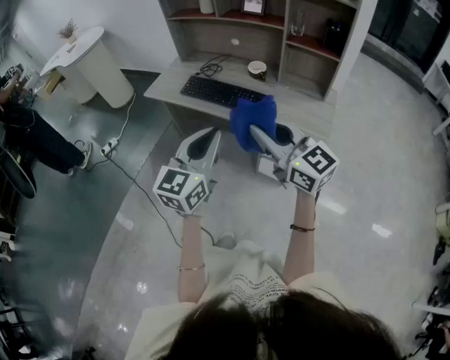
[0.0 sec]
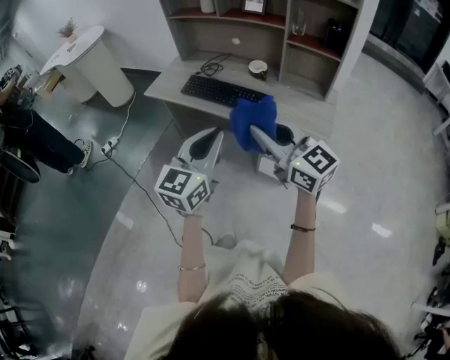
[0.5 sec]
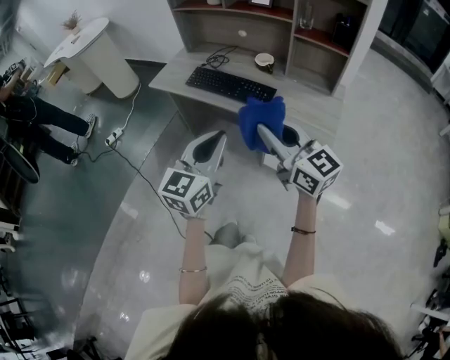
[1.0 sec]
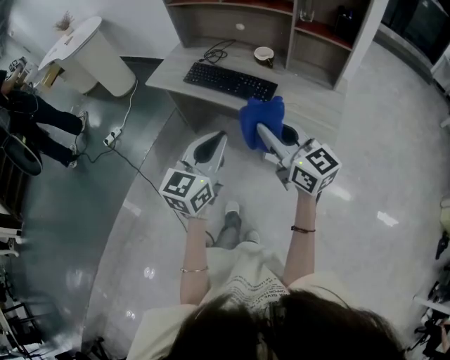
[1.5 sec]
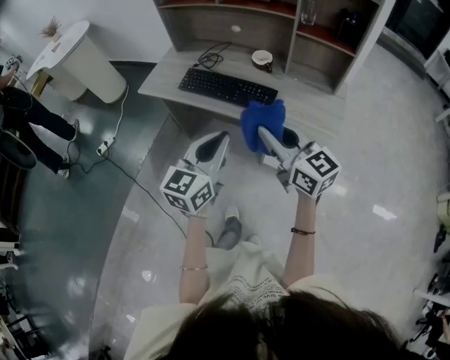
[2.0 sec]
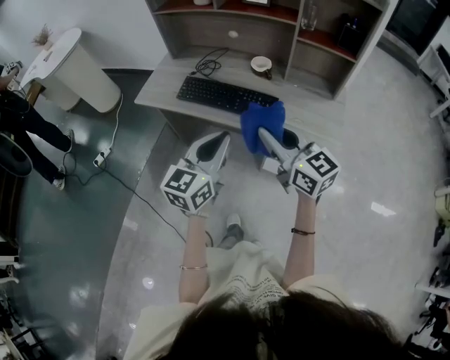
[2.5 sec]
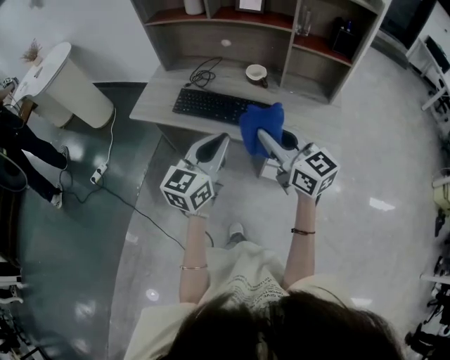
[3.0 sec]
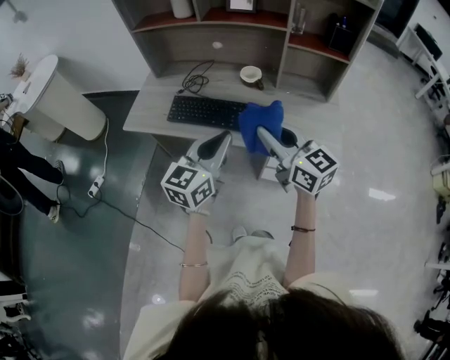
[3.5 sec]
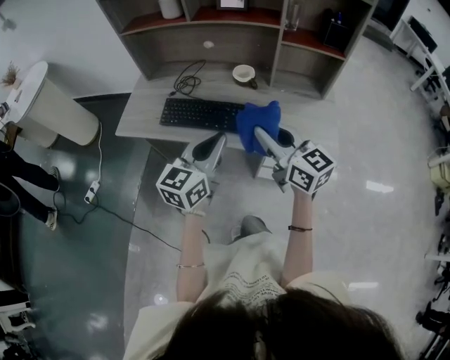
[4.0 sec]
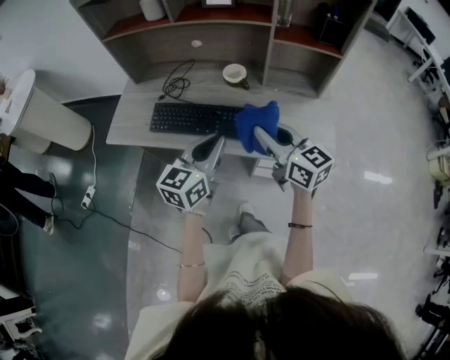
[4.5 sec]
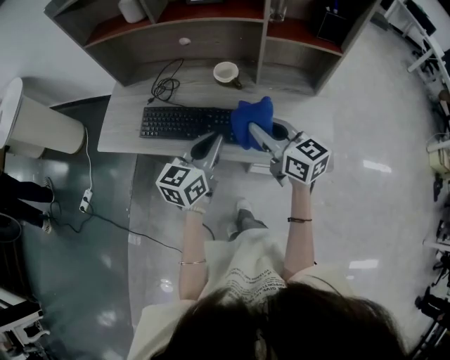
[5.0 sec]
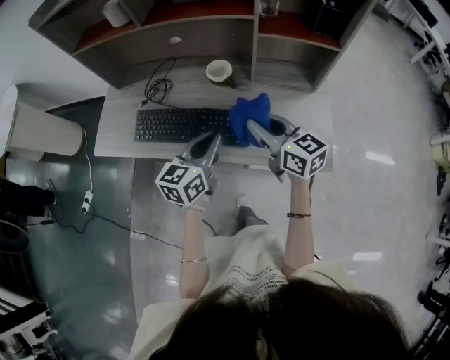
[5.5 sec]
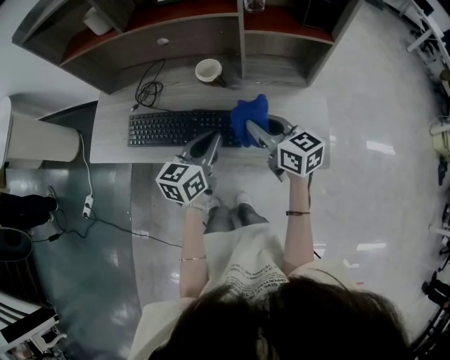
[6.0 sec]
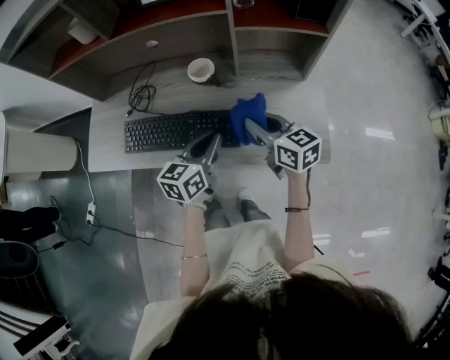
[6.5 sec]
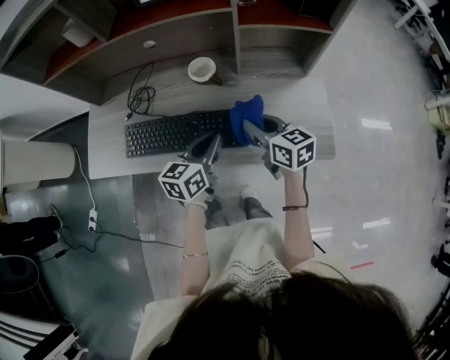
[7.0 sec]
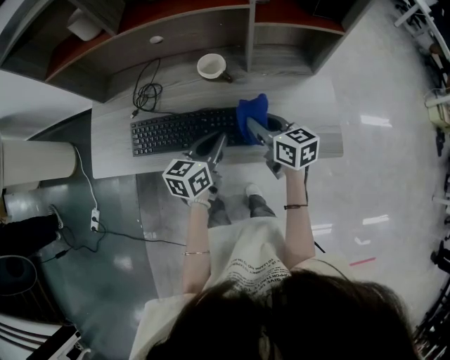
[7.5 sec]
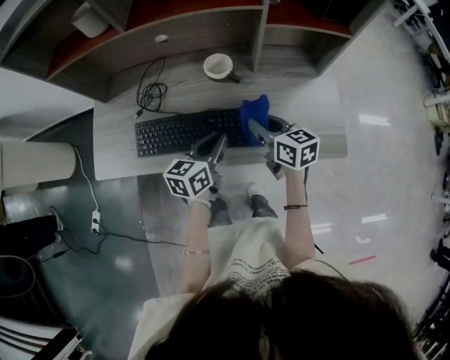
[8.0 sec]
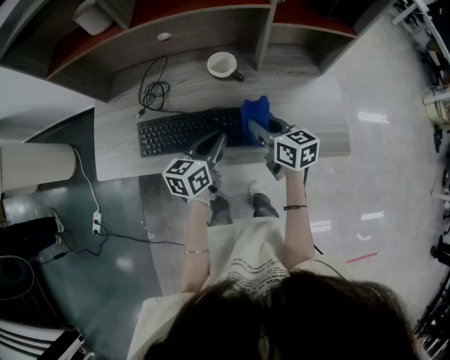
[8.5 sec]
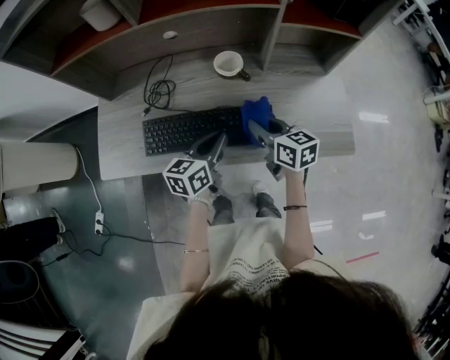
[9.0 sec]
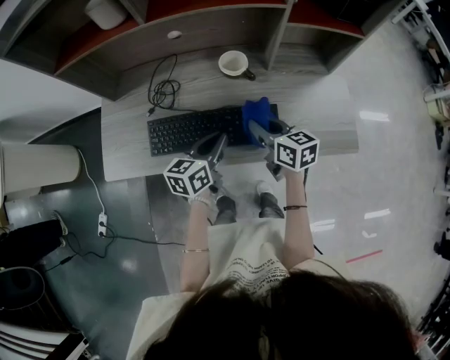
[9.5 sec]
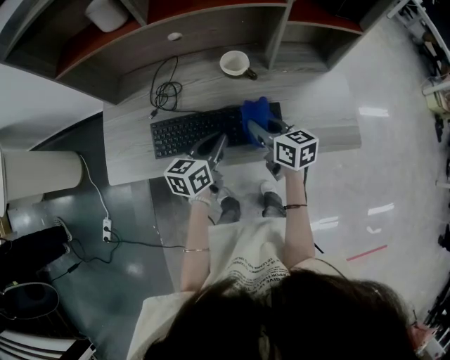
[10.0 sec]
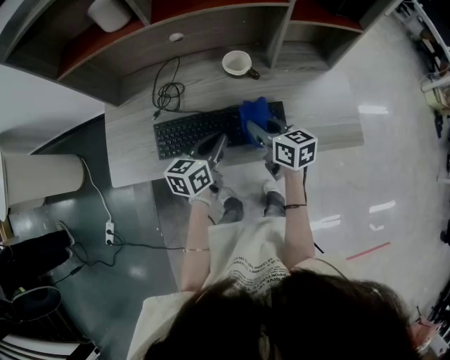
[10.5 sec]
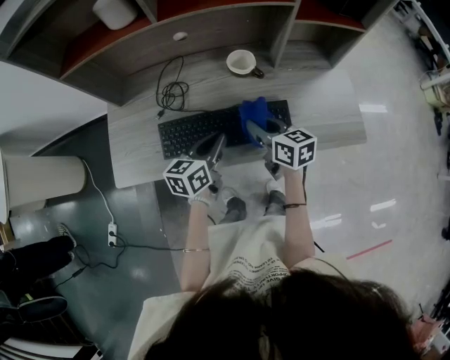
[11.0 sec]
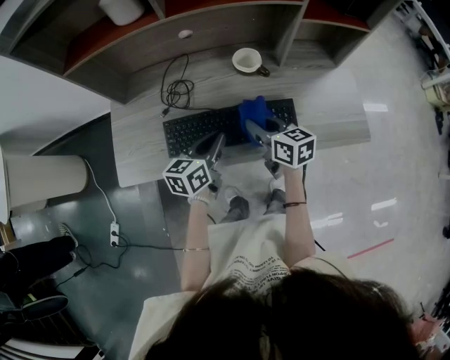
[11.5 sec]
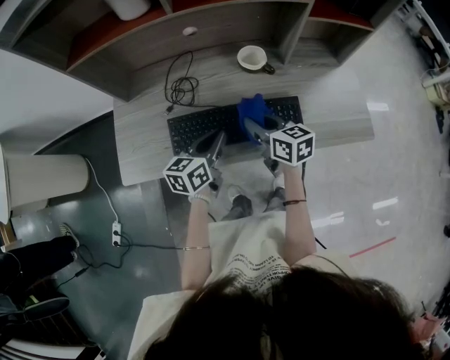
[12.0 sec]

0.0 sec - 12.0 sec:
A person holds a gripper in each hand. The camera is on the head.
0.0 sec - 2.0 sec: The two grippers go roughly 10 cm forward and downward.
2.0 sec - 4.0 sec: Both grippers travel together forward, approximately 15 cm.
4.0 sec - 6.0 sec: The right gripper goes some 20 cm forward, downward and to the right; the left gripper goes some 20 cm forward, to the right and downward.
6.0 sec - 8.0 sec: The left gripper shifts some 10 cm to the left and downward. The right gripper goes approximately 10 cm downward and to the left.
8.0 sec - 10.0 sec: The grippers both shift to the left by about 5 cm.
10.0 sec - 12.0 sec: Both grippers travel together to the left, roughly 10 cm.

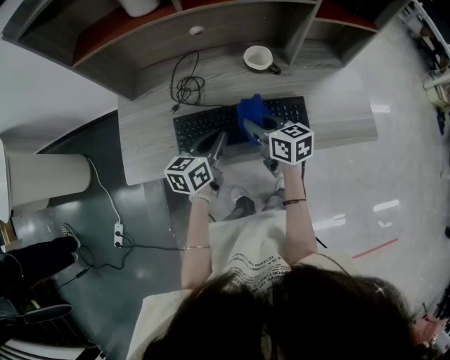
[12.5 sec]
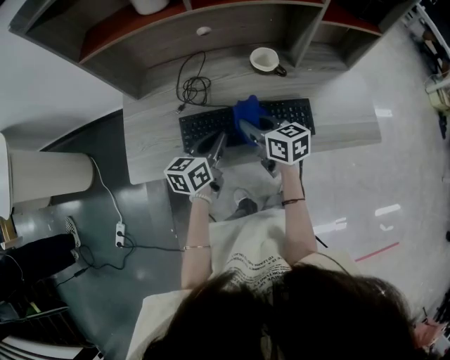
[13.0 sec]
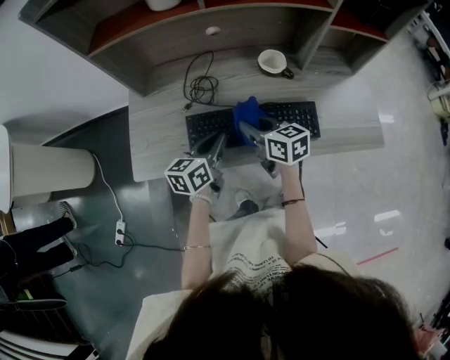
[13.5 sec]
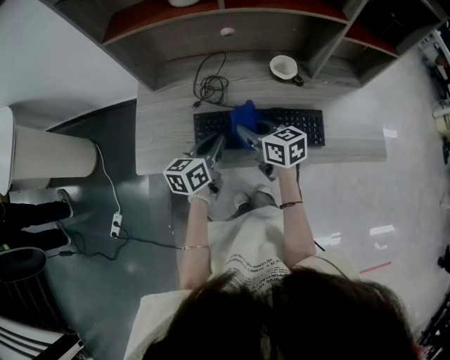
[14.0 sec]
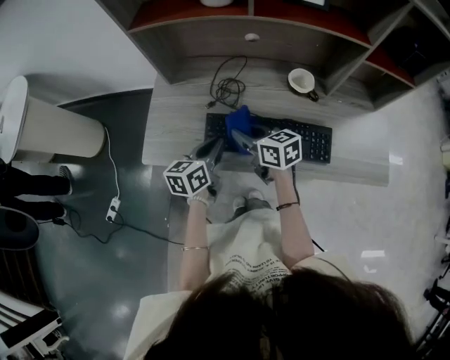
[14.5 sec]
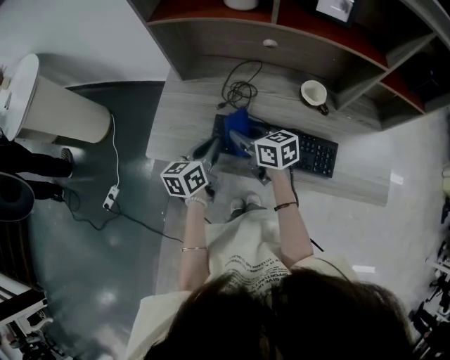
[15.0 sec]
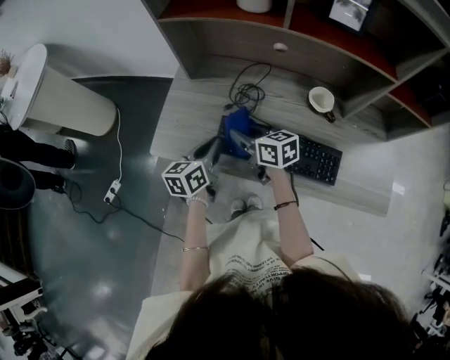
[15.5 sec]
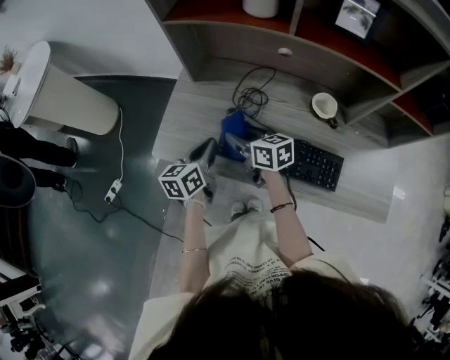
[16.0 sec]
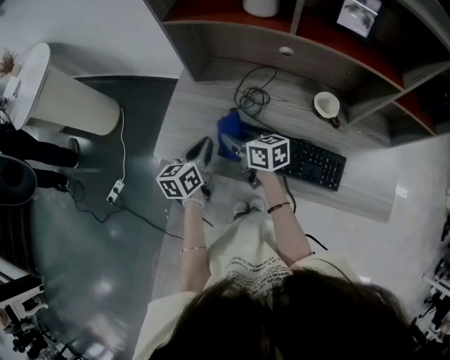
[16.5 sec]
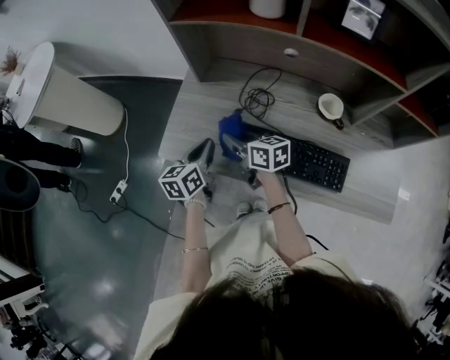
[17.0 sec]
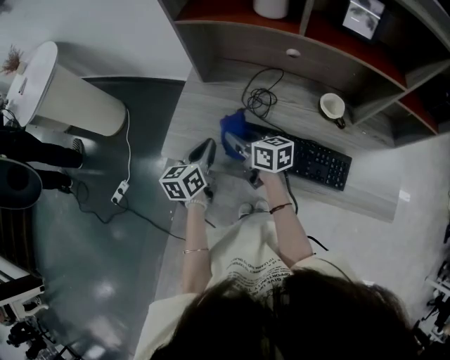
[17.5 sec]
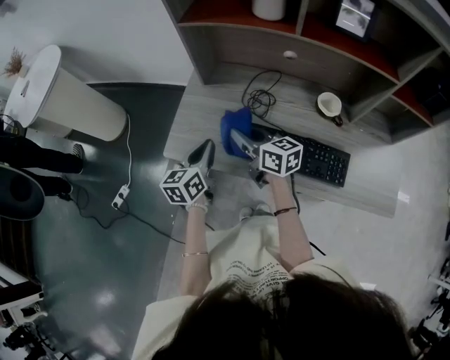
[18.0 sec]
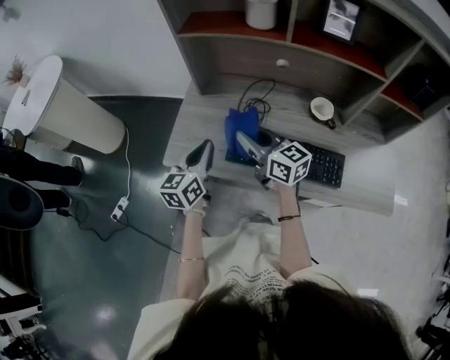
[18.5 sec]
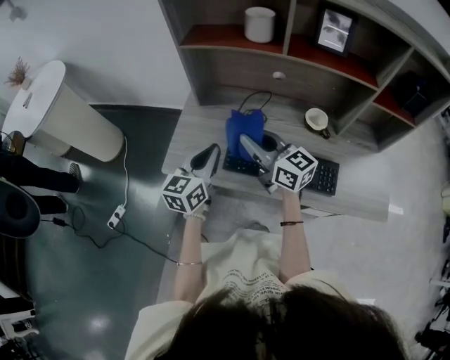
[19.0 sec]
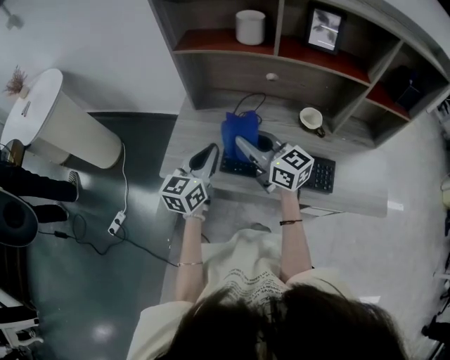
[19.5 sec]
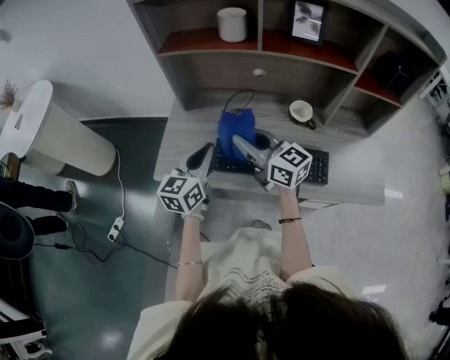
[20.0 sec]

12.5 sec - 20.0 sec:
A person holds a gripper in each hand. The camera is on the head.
12.5 sec - 14.5 sec: Both grippers travel together to the left, some 10 cm.
14.5 sec - 16.5 sec: Both grippers travel together to the left, about 10 cm.
16.5 sec - 18.0 sec: The right gripper is displaced upward by roughly 5 cm.
18.0 sec - 20.0 sec: Both grippers travel together upward and to the right, about 10 cm. The right gripper swivels some 20 degrees; the left gripper rotates roughly 20 degrees.

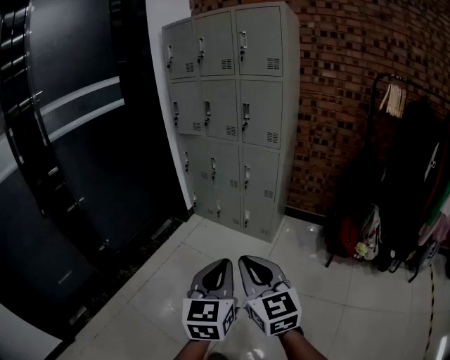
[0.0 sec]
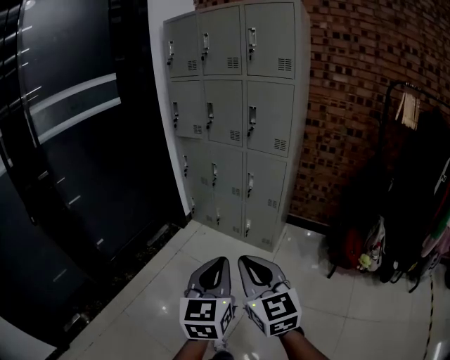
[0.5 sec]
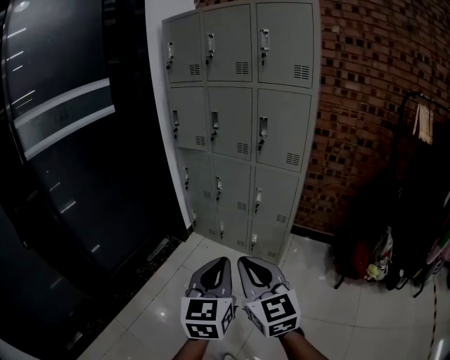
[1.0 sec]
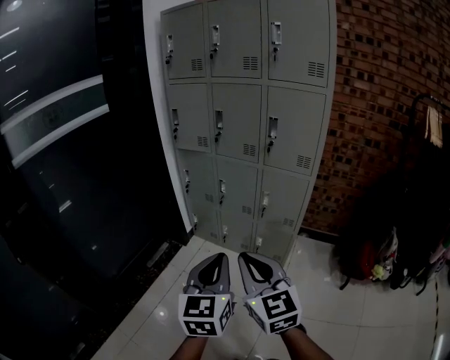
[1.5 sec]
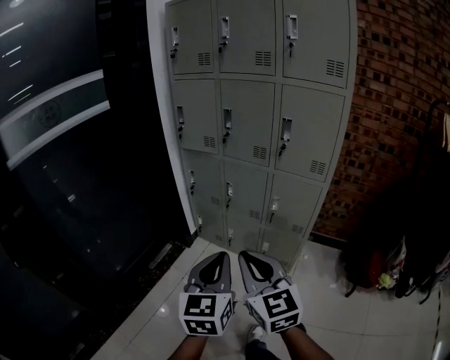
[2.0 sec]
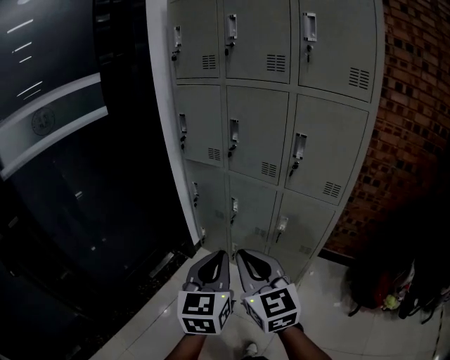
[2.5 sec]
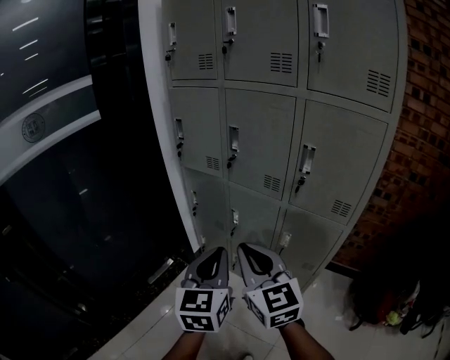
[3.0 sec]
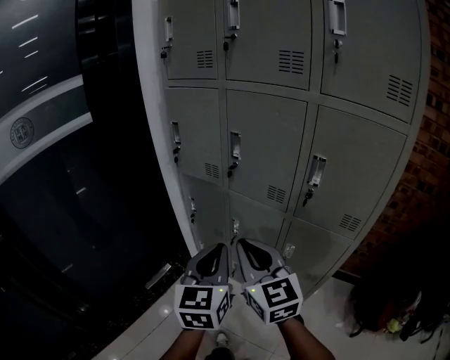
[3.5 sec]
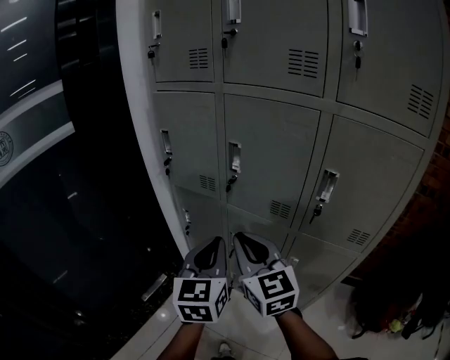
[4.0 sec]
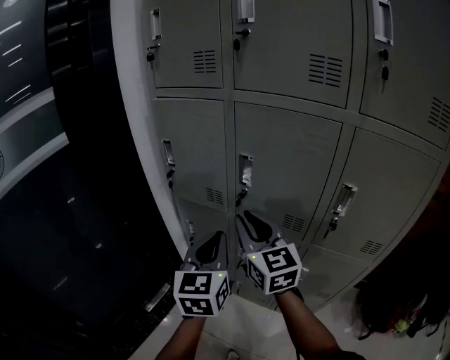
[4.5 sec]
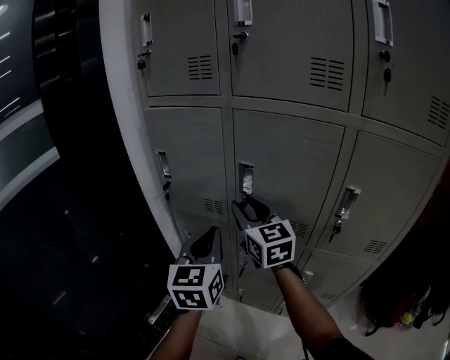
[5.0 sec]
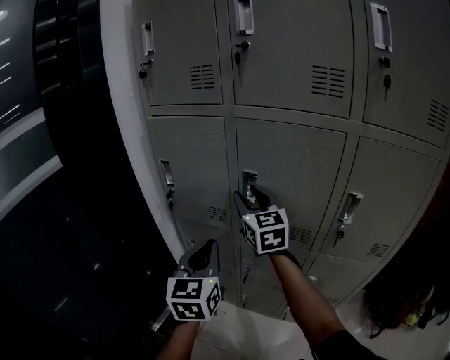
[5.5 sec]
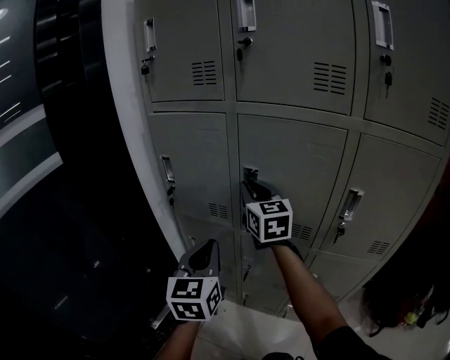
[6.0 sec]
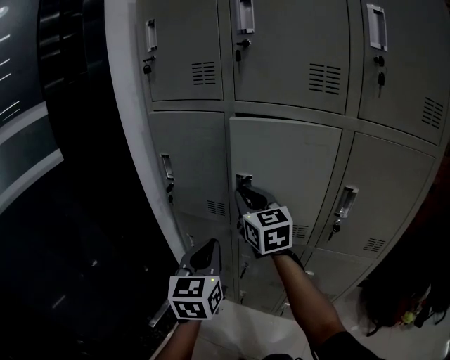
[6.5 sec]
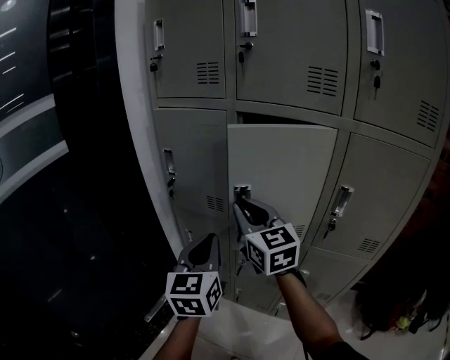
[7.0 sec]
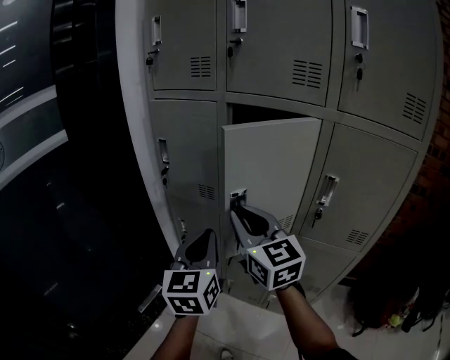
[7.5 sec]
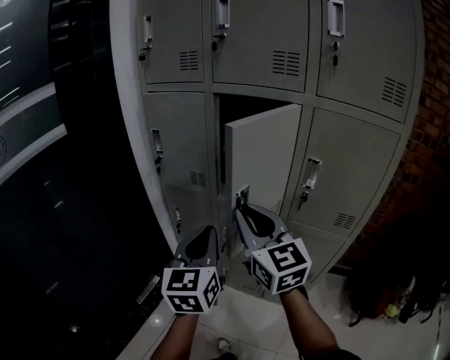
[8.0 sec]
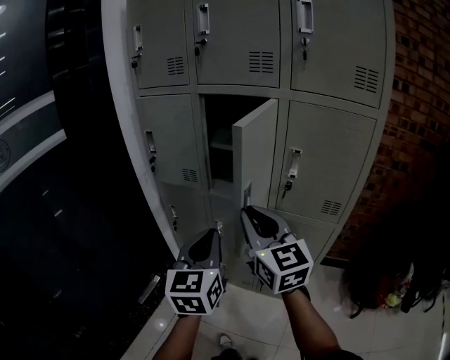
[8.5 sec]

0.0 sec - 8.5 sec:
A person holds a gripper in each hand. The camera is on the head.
0.0 sec - 2.0 sec: Both grippers are carried forward, approximately 40 cm.
2.0 sec - 4.0 sec: Both grippers are carried forward, about 40 cm.
4.0 sec - 6.5 sec: The right gripper moves forward, approximately 20 cm, and opens, then closes again, while the left gripper travels forward and to the left by roughly 10 cm.
6.5 sec - 8.5 sec: The right gripper is displaced backward by some 30 cm, while the left gripper heads backward and to the right, covering roughly 20 cm.
